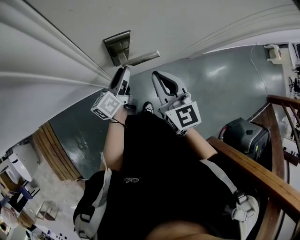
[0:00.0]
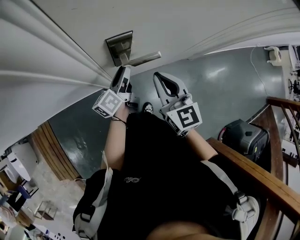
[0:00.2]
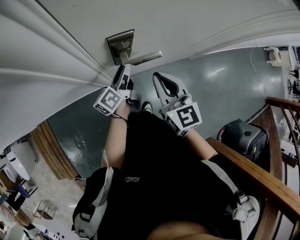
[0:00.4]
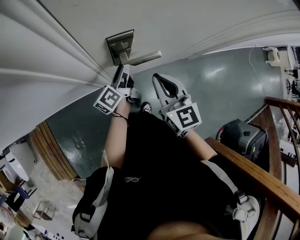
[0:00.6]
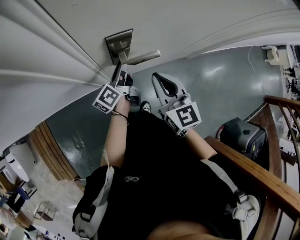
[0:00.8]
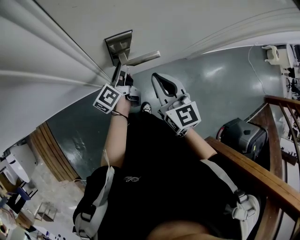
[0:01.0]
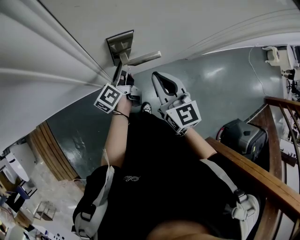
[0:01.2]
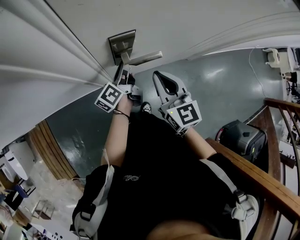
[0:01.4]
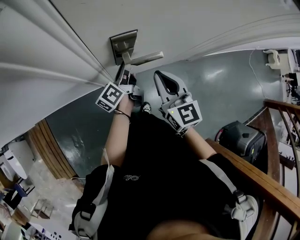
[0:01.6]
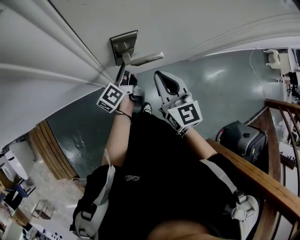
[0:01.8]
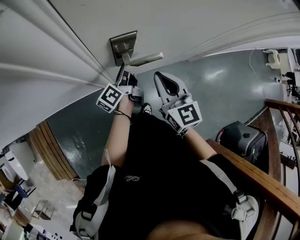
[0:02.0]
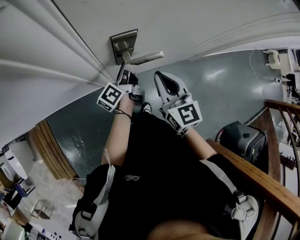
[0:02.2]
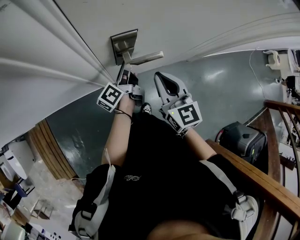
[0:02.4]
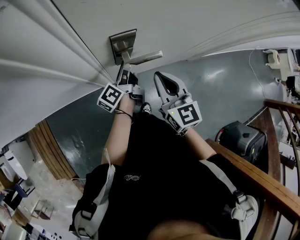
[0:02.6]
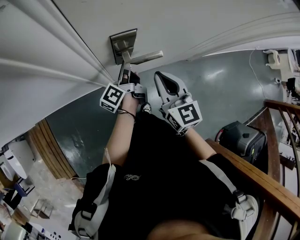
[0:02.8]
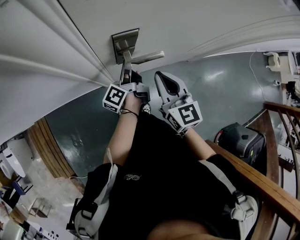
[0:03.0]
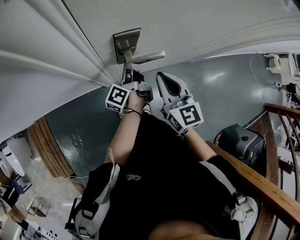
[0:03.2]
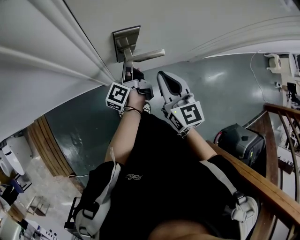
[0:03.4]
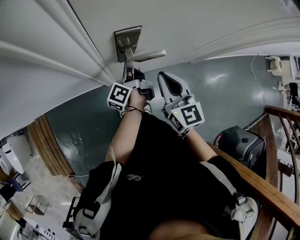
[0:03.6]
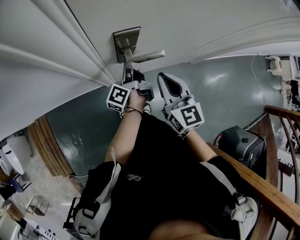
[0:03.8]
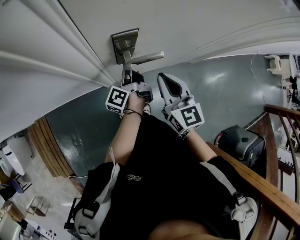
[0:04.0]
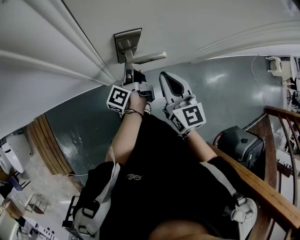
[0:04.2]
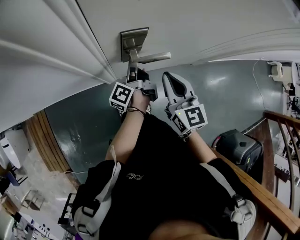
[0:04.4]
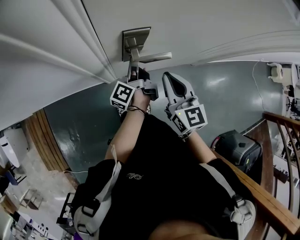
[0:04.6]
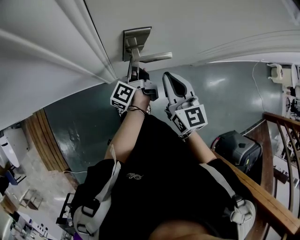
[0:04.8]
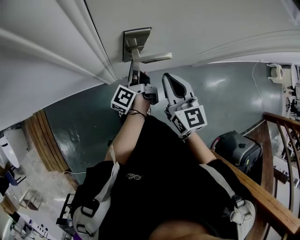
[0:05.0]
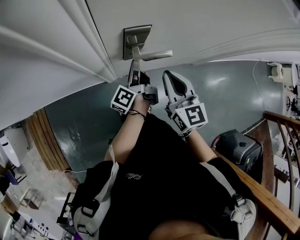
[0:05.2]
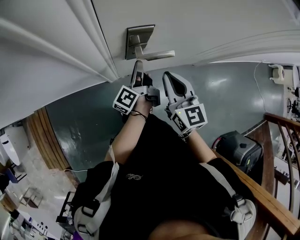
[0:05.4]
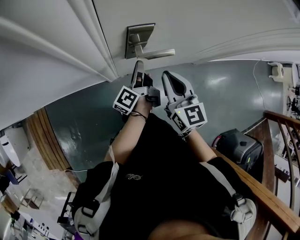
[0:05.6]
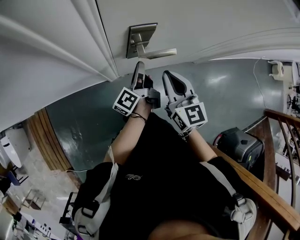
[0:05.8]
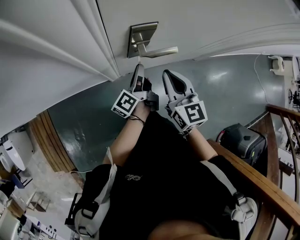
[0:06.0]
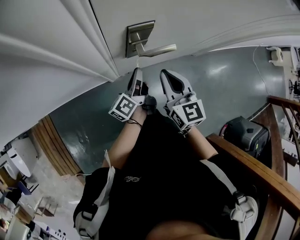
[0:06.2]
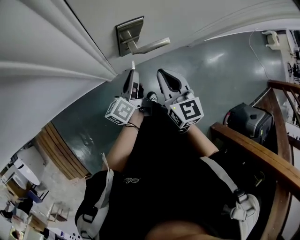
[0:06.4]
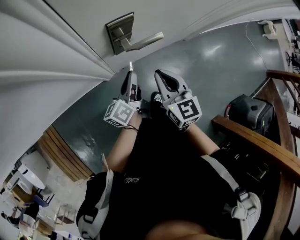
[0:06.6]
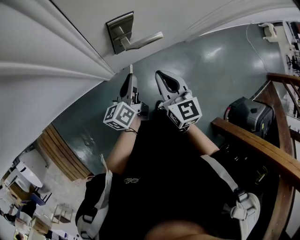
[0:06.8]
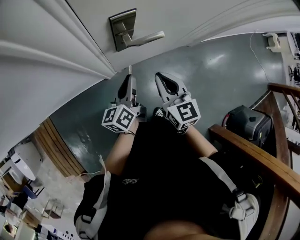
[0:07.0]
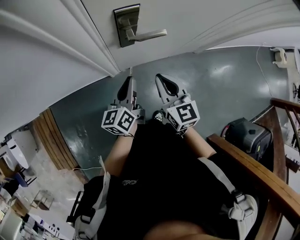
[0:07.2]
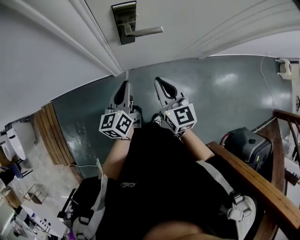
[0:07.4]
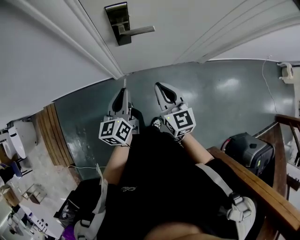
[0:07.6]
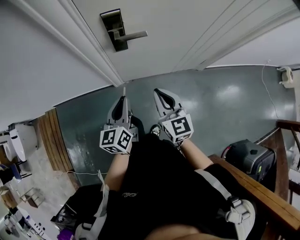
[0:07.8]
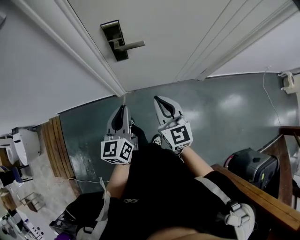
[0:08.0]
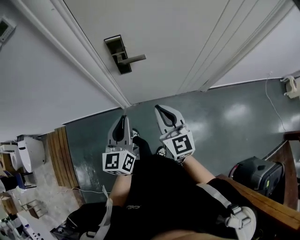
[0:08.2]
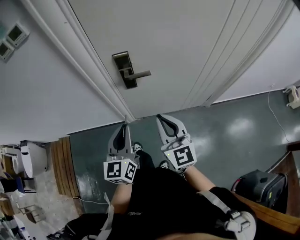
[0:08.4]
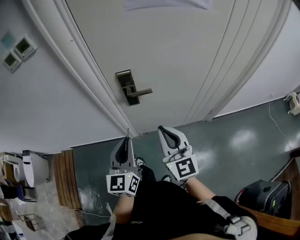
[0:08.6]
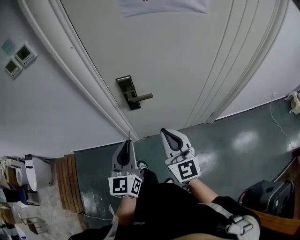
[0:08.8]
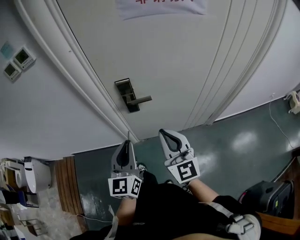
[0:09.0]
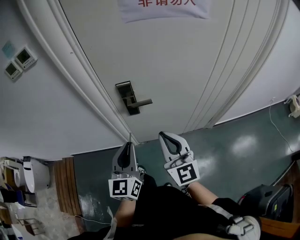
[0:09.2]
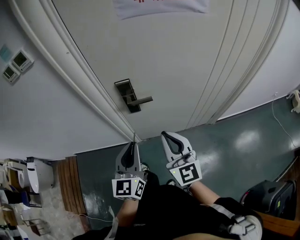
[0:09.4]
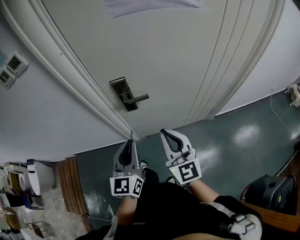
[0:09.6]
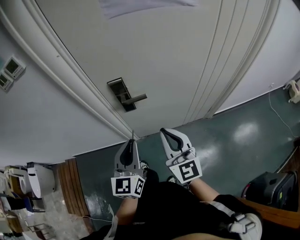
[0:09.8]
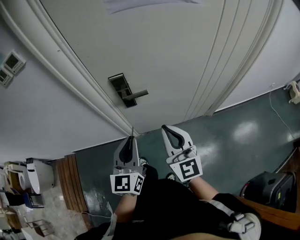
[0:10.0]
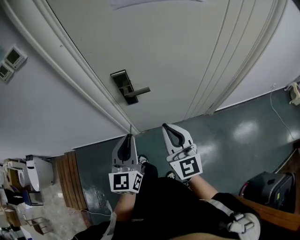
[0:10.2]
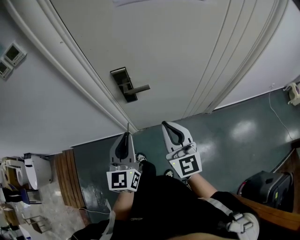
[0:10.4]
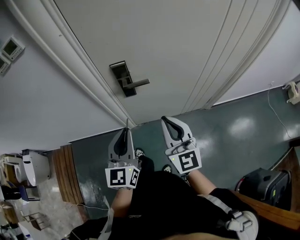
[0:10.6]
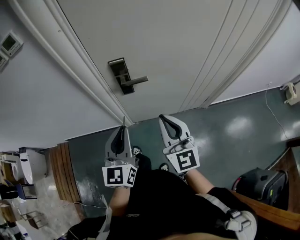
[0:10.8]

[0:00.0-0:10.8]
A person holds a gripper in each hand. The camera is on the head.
0:00.0 to 0:01.6: The left gripper closes its fingers.
0:01.6 to 0:03.0: The grippers move only a little.
0:03.0 to 0:04.6: The grippers move only a little.
0:04.6 to 0:06.2: The left gripper moves backward, about 5 cm, and swivels approximately 20 degrees.
0:06.2 to 0:07.8: Both grippers travel together backward, approximately 20 cm. The left gripper twists some 50 degrees clockwise, seen from behind.
0:07.8 to 0:09.2: Both grippers move upward, about 15 cm. The right gripper changes its angle by approximately 20 degrees, while the left gripper rotates approximately 20 degrees.
0:09.2 to 0:10.8: There are only small adjustments of the grippers.

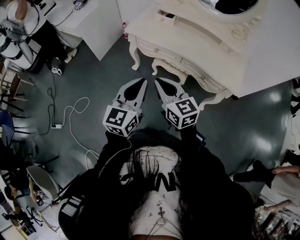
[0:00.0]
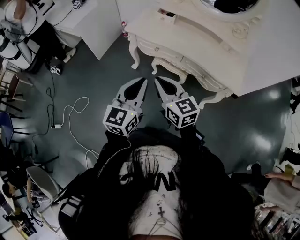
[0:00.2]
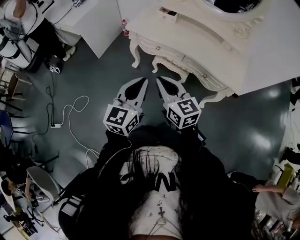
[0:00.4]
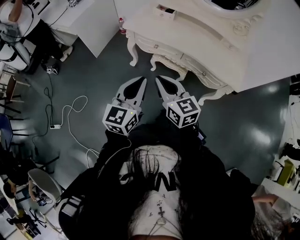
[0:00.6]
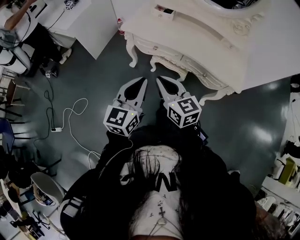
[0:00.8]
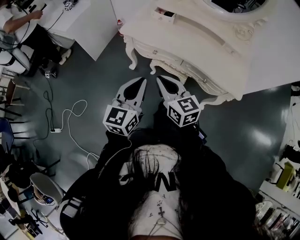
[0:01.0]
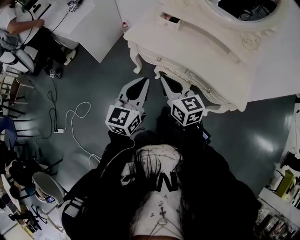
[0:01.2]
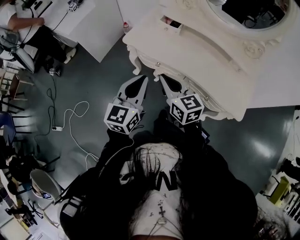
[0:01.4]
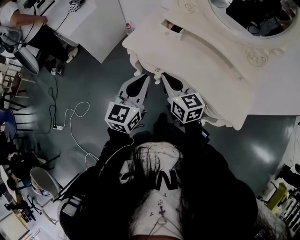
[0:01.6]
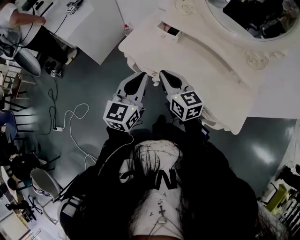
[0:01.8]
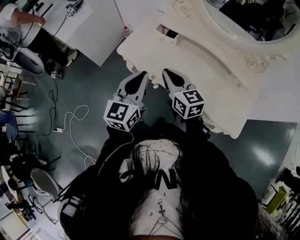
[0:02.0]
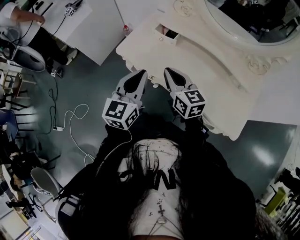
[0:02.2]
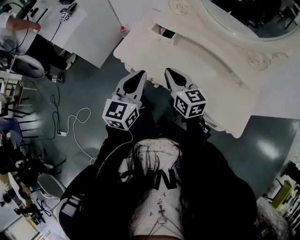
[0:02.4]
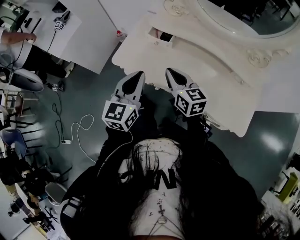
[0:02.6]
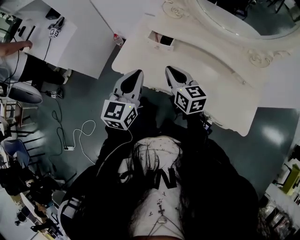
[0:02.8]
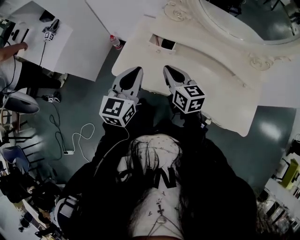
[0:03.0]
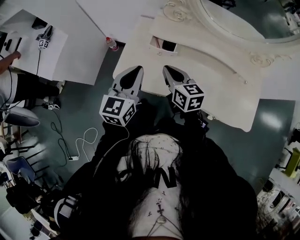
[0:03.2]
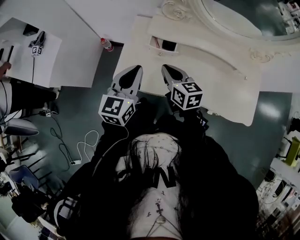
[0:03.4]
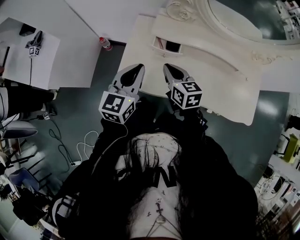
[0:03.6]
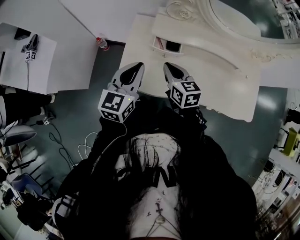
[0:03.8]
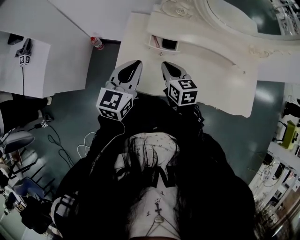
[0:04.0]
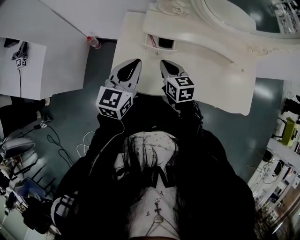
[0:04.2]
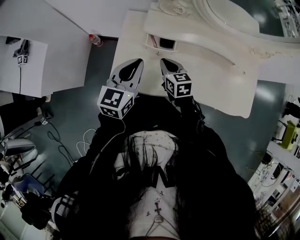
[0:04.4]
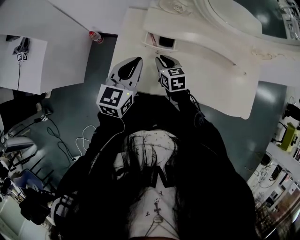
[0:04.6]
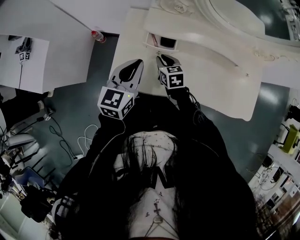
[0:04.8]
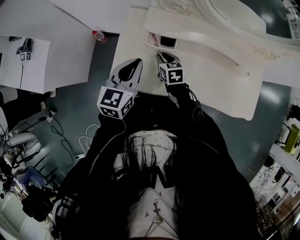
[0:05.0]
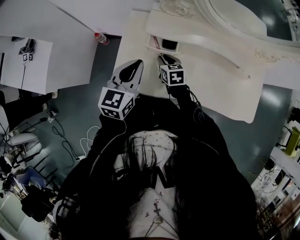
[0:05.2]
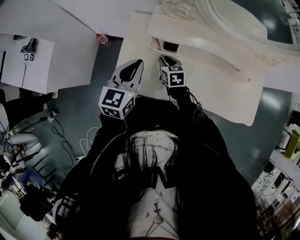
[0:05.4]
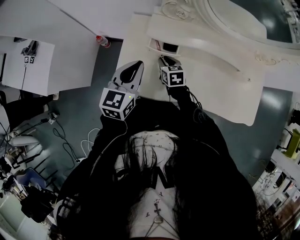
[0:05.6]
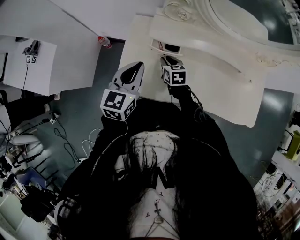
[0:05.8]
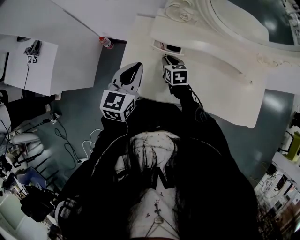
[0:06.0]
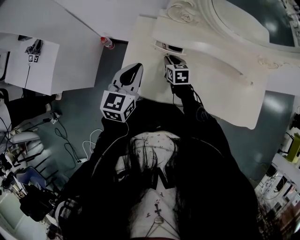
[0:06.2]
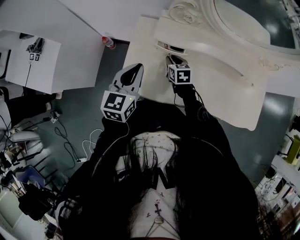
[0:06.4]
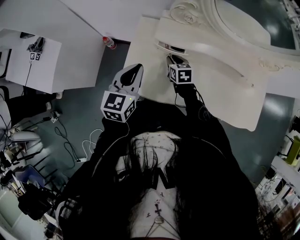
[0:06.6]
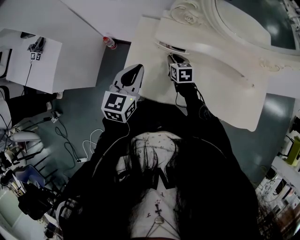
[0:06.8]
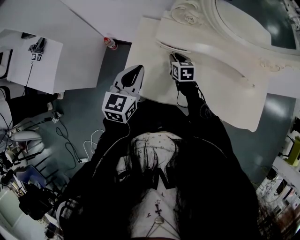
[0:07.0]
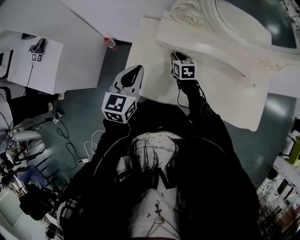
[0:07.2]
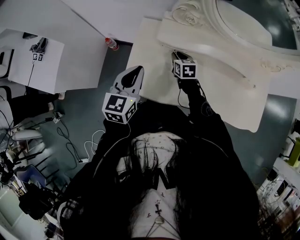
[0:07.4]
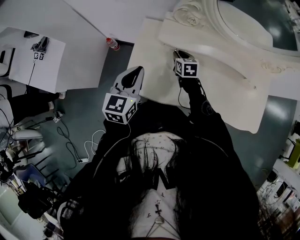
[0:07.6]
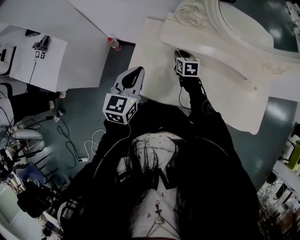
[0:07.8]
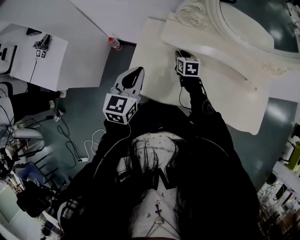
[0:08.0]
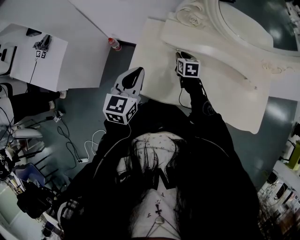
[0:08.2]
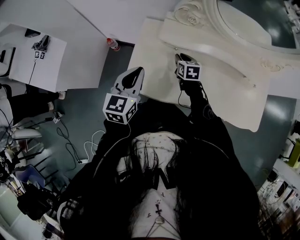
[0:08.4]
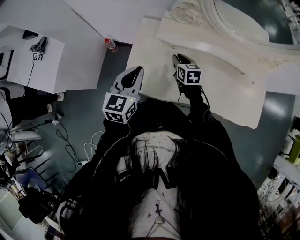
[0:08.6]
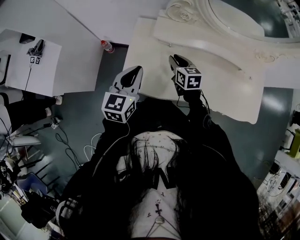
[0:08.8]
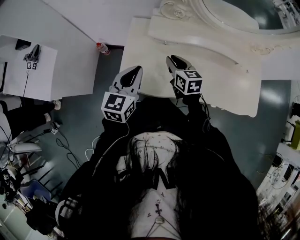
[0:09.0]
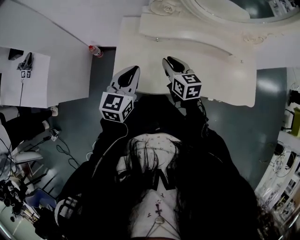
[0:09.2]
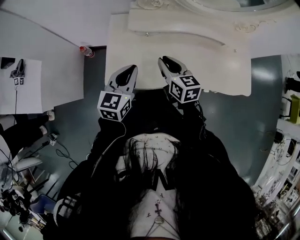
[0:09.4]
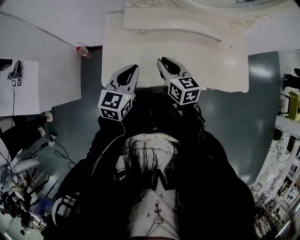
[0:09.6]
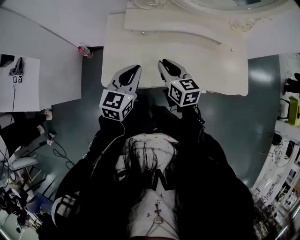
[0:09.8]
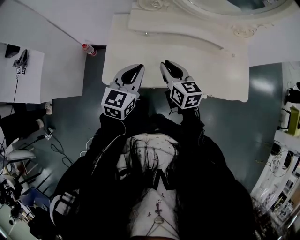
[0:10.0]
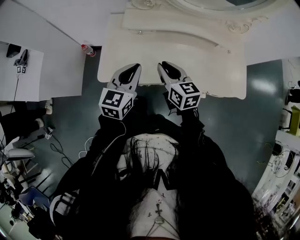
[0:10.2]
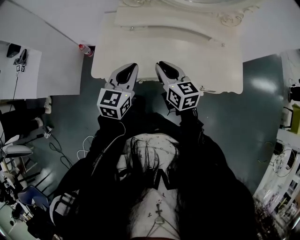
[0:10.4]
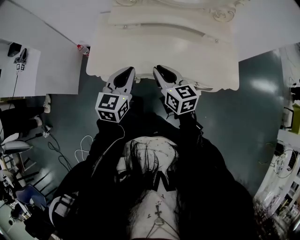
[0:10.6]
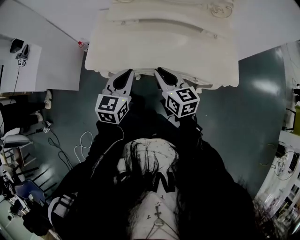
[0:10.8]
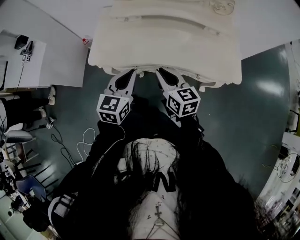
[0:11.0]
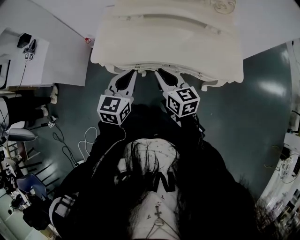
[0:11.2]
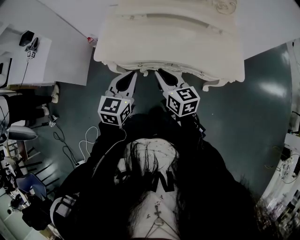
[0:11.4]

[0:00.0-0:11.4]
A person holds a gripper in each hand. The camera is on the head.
0:00.0 to 0:01.4: The two grippers go roughly 20 cm forward.
0:01.4 to 0:02.8: The left gripper goes approximately 20 cm forward; the right gripper travels forward and to the right by some 20 cm.
0:02.8 to 0:04.2: The left gripper travels forward and to the left by approximately 15 cm, and swivels roughly 20 degrees, while the right gripper shifts some 15 cm forward, downward and to the left, and swivels approximately 20 degrees.
0:04.2 to 0:05.6: The right gripper travels downward and forward by roughly 10 cm.
0:05.6 to 0:07.2: The right gripper shifts by about 5 cm.
0:07.2 to 0:08.6: There are only small adjustments of the grippers.
0:08.6 to 0:10.0: The right gripper heads backward and upward, covering roughly 20 cm. Meanwhile the left gripper travels to the right by about 10 cm.
0:10.0 to 0:11.4: The left gripper heads backward and to the right, covering some 20 cm. Meanwhile the right gripper moves backward, approximately 20 cm.

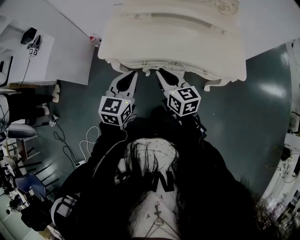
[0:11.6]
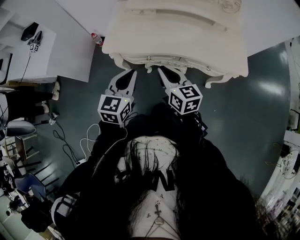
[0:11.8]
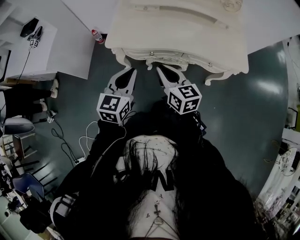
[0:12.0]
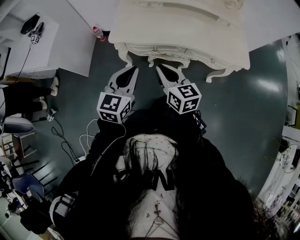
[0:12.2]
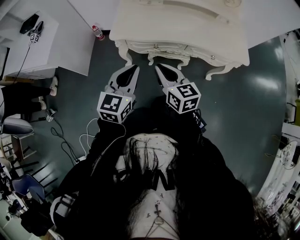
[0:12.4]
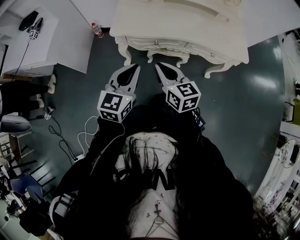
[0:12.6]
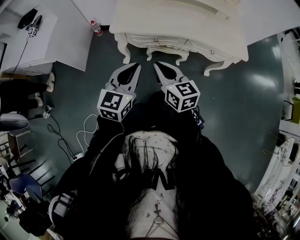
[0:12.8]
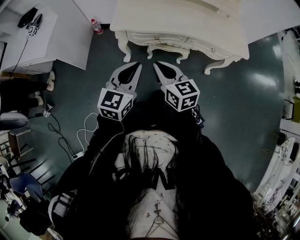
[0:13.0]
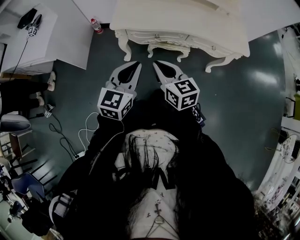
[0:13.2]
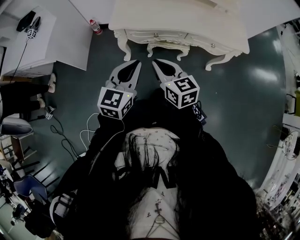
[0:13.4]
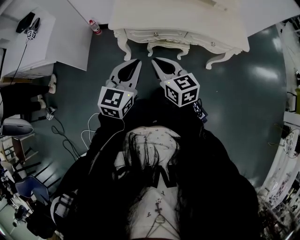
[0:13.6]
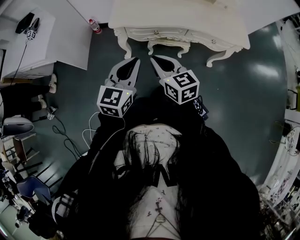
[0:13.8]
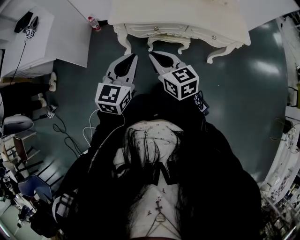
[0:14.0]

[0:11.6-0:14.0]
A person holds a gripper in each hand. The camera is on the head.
0:11.6 to 0:12.8: The left gripper is displaced backward and to the left by about 15 cm. Meanwhile the right gripper moves to the left and backward, roughly 15 cm.
0:12.8 to 0:14.0: There are only small adjustments of the grippers.
